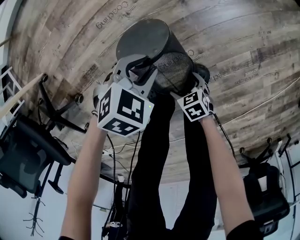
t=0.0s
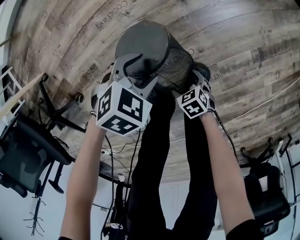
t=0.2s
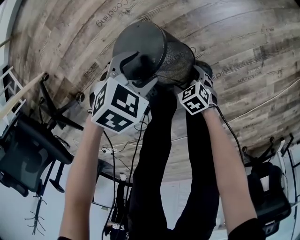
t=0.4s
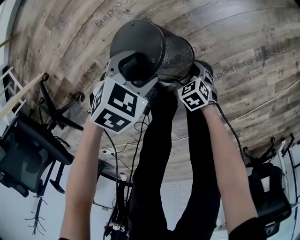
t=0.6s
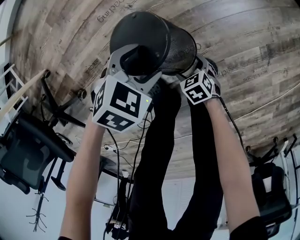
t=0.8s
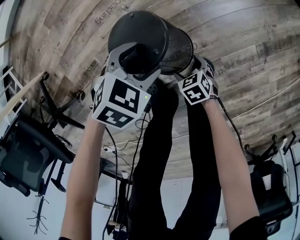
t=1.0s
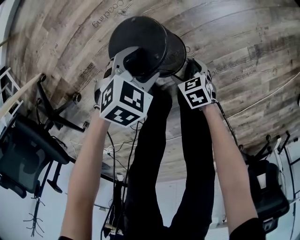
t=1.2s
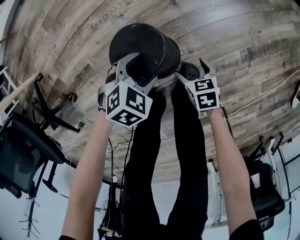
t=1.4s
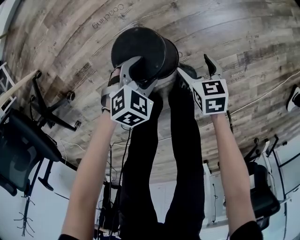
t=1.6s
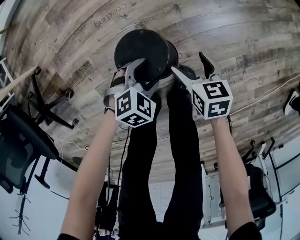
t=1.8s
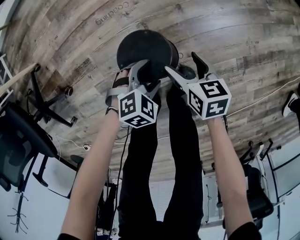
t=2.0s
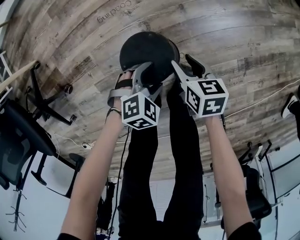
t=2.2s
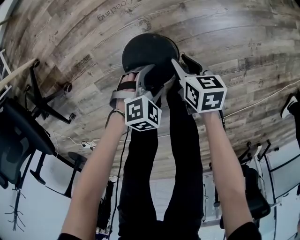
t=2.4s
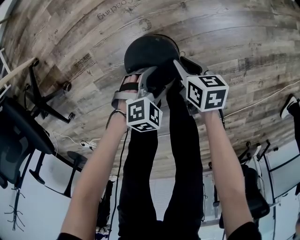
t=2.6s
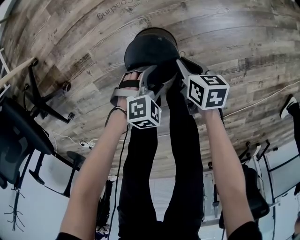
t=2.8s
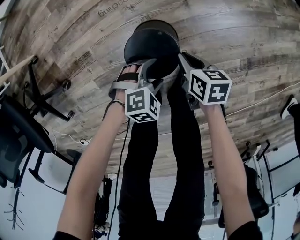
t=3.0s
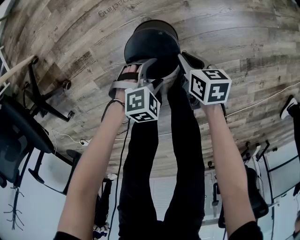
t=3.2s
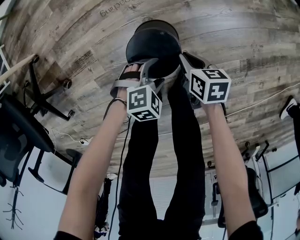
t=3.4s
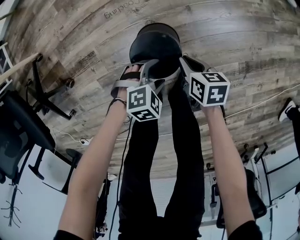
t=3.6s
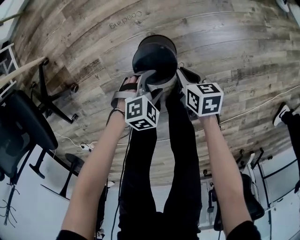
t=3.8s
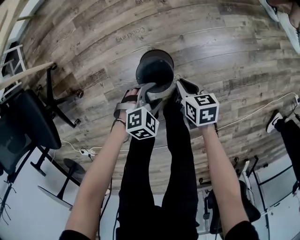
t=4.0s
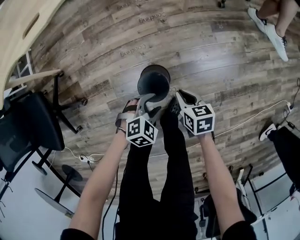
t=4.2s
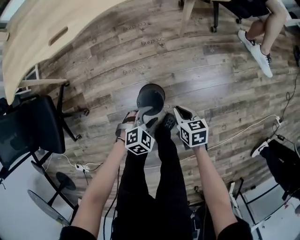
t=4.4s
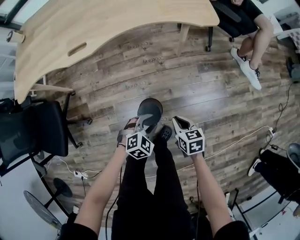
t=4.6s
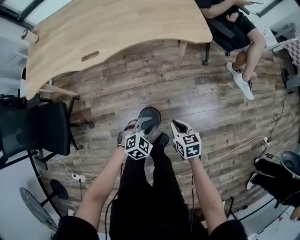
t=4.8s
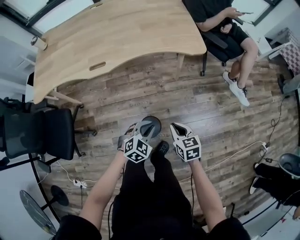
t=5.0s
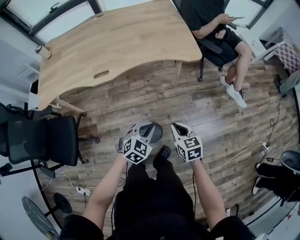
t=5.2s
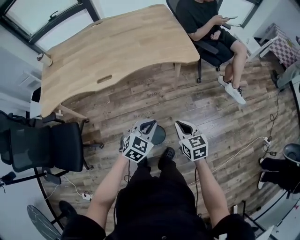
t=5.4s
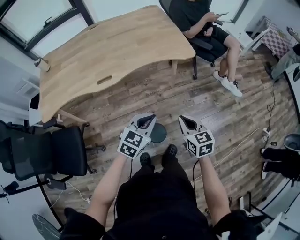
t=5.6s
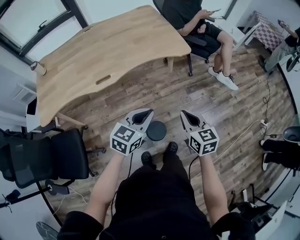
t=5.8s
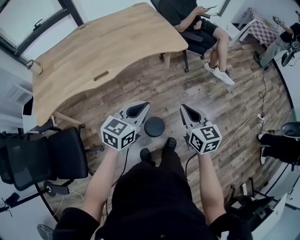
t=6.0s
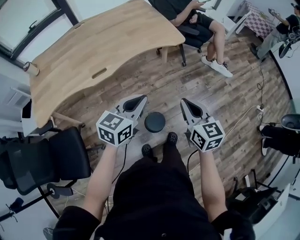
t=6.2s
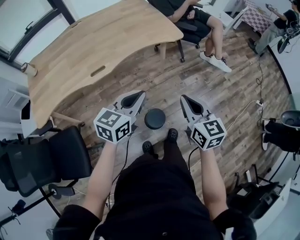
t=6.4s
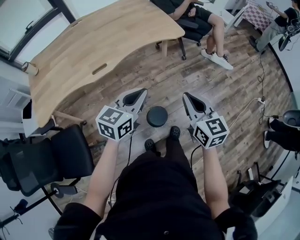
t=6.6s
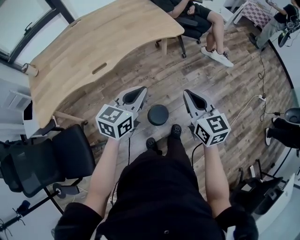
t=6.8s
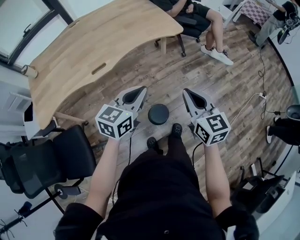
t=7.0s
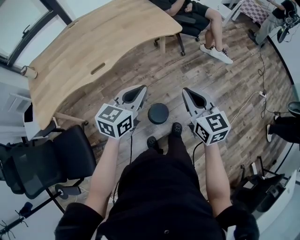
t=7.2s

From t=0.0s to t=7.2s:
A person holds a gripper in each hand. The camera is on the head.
From t=0.0s to t=1.4s: The right gripper ends up approximately 15 cm from where it was. The left gripper opens.
From t=1.4s to t=2.8s: The right gripper shifts by some 10 cm, and closes up. Meanwhile the left gripper ends up some 5 cm from where it was.
From t=2.8s to t=4.4s: Both grippers move upward, roughly 30 cm. The right gripper changes its angle by roughly 20 degrees.
From t=4.4s to t=5.8s: The grippers both shift upward by roughly 40 cm. The left gripper tilts its fingers approximately 40 degrees upward, and closes. The right gripper swivels about 30 degrees.
From t=5.8s to t=7.2s: The right gripper is displaced upward by roughly 10 cm. Meanwhile the left gripper changes place by roughly 5 cm.

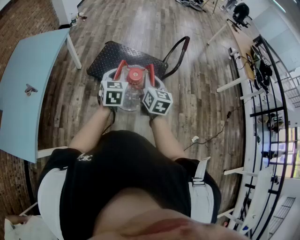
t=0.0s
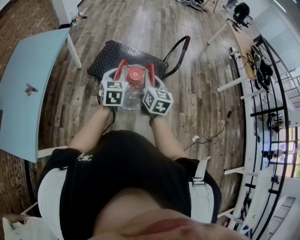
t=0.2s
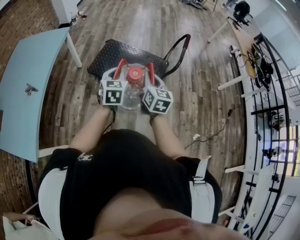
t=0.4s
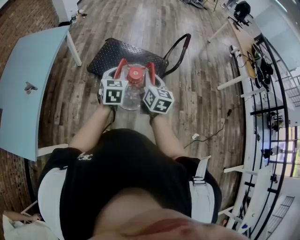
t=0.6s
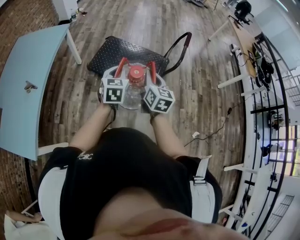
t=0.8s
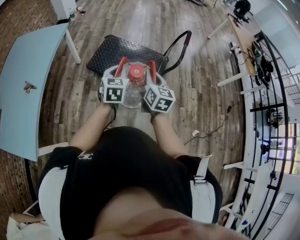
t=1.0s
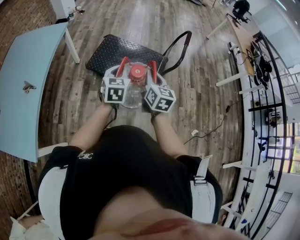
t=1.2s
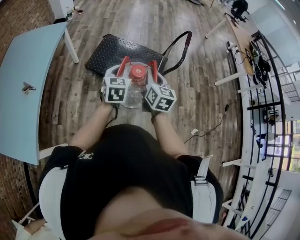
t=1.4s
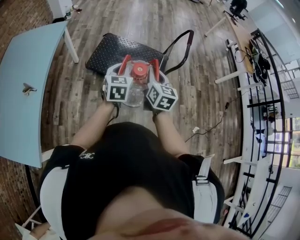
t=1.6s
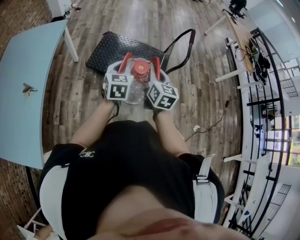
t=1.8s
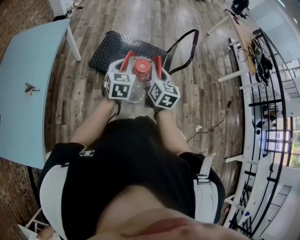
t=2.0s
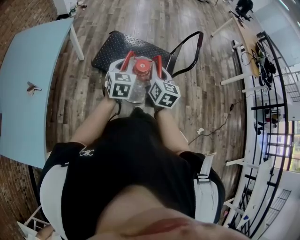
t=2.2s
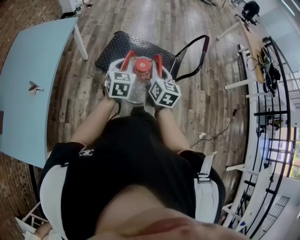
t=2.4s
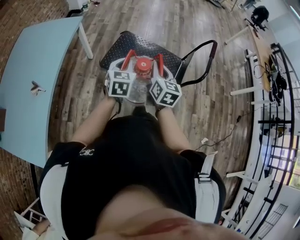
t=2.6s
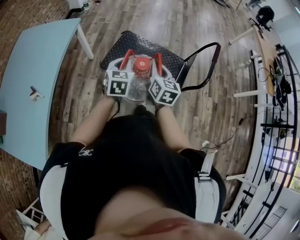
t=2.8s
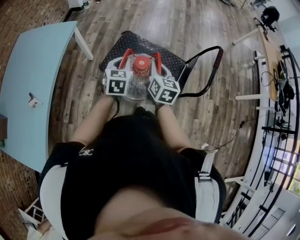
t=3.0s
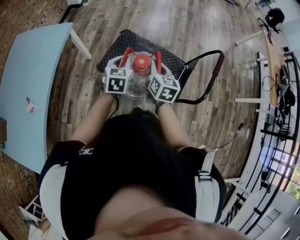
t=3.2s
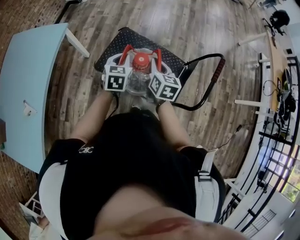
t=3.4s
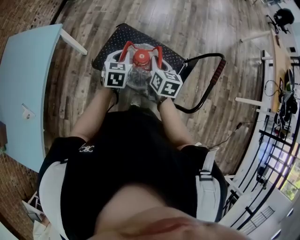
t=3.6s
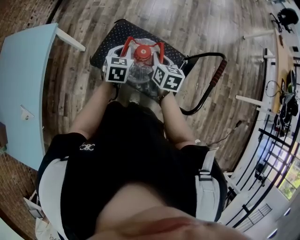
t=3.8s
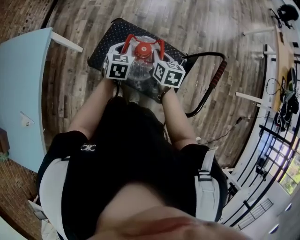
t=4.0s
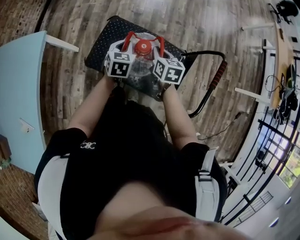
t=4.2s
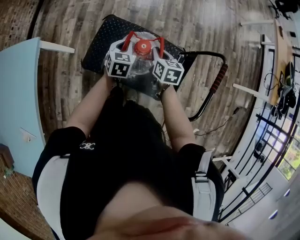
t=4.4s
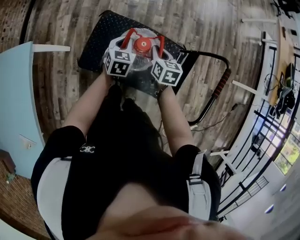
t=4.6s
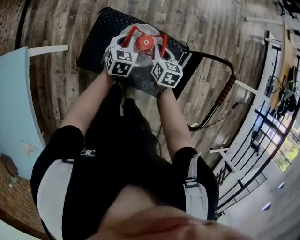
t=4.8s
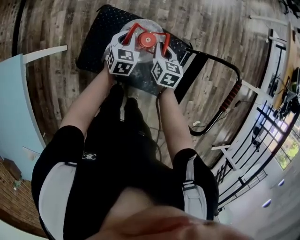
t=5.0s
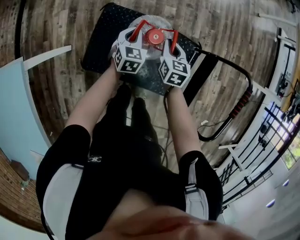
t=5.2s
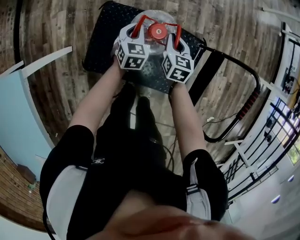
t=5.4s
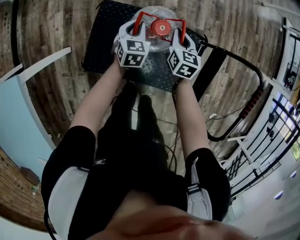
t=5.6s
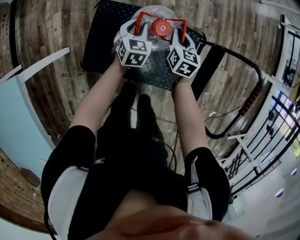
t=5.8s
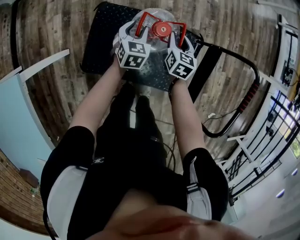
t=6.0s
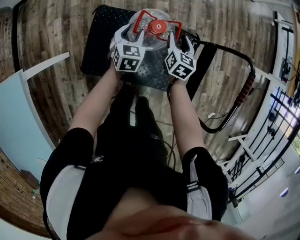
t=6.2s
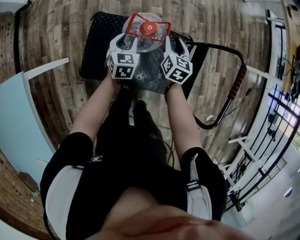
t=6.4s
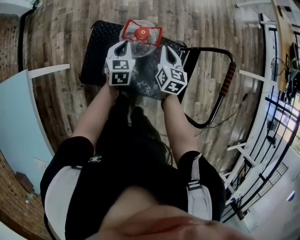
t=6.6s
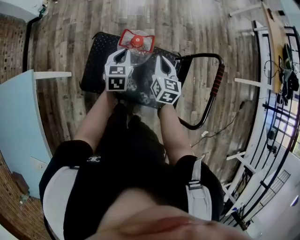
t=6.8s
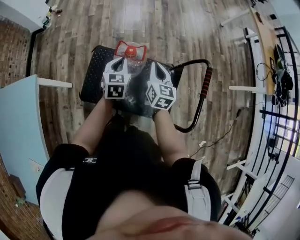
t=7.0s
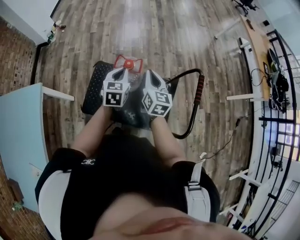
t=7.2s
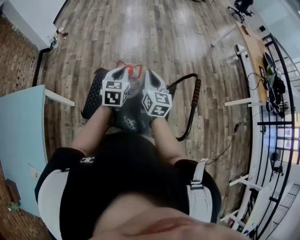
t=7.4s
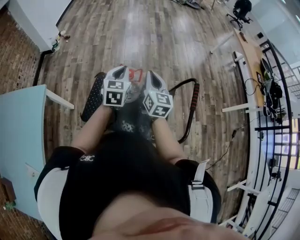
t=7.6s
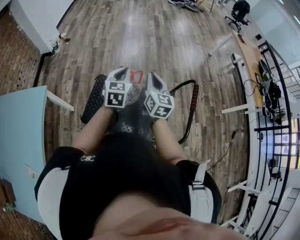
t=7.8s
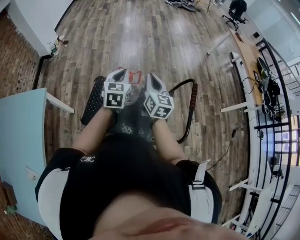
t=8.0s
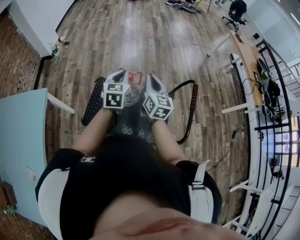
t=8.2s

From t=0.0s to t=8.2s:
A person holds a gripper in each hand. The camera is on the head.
From t=0.0s to t=1.6s: The grippers stay close to where they were, moving slightly.
From t=1.6s to t=3.2s: The grippers both shift forward by about 25 cm.
From t=3.2s to t=5.0s: The grippers both shift forward and downward by about 40 cm. The right gripper swivels approximately 20 degrees.
From t=5.0s to t=6.6s: The right gripper shifts some 10 cm upward and to the right, and opens, then closes again; the left gripper moves upward, about 5 cm, and opens, then closes again.
From t=6.6s to t=8.2s: The two grippers go some 25 cm upward. The right gripper swivels approximately 20 degrees.

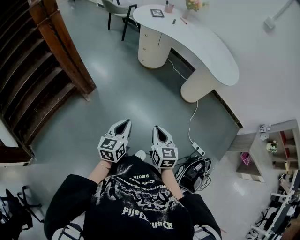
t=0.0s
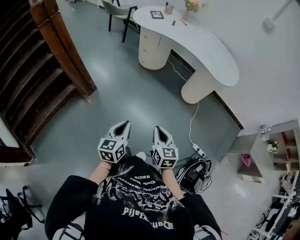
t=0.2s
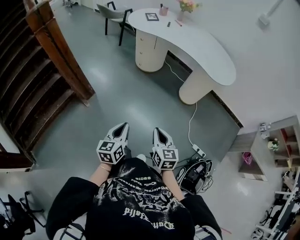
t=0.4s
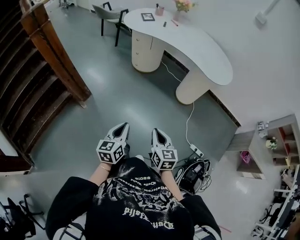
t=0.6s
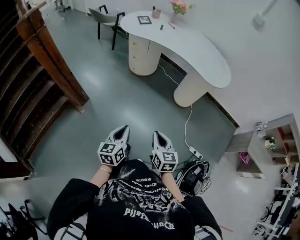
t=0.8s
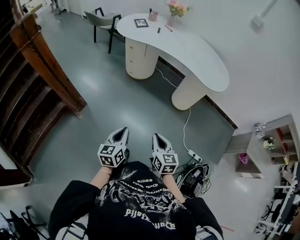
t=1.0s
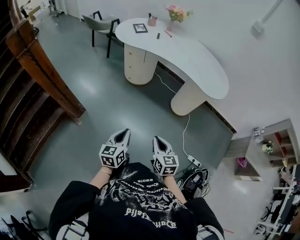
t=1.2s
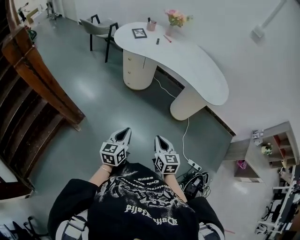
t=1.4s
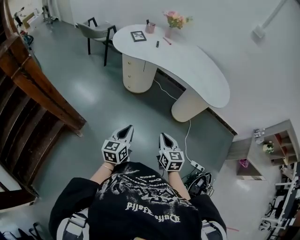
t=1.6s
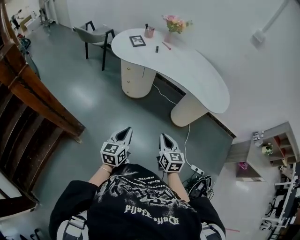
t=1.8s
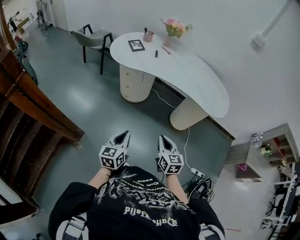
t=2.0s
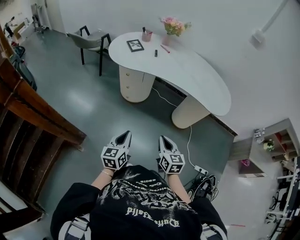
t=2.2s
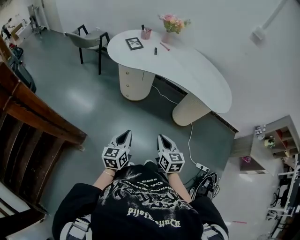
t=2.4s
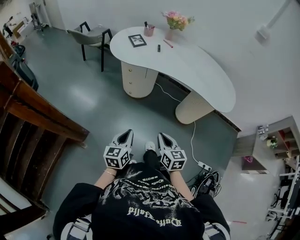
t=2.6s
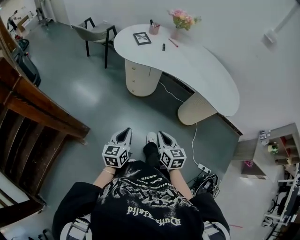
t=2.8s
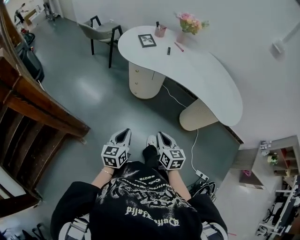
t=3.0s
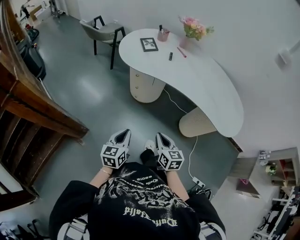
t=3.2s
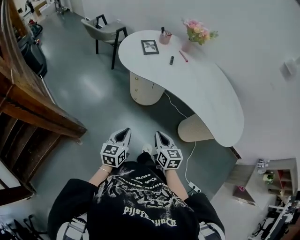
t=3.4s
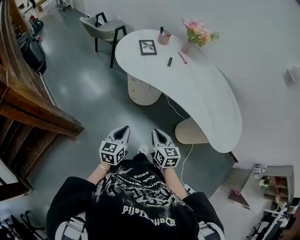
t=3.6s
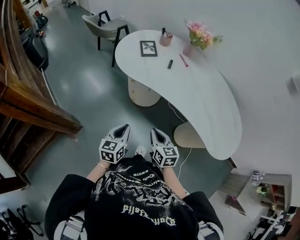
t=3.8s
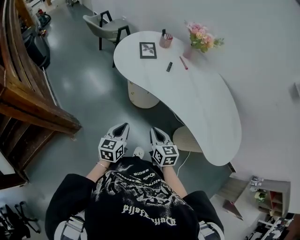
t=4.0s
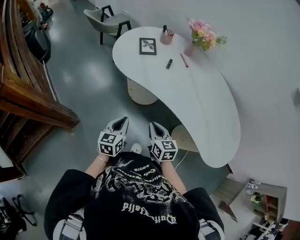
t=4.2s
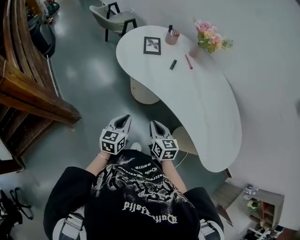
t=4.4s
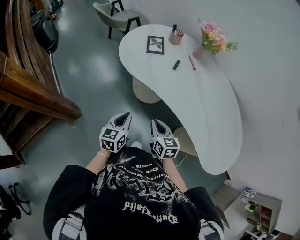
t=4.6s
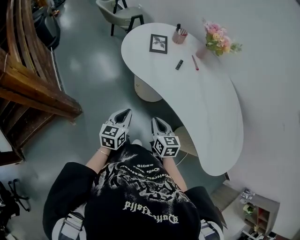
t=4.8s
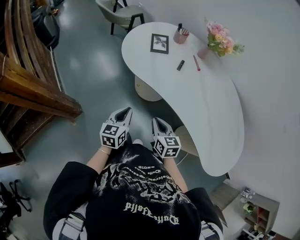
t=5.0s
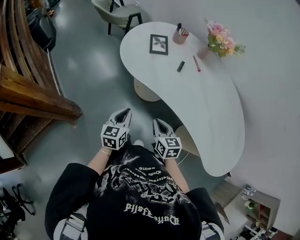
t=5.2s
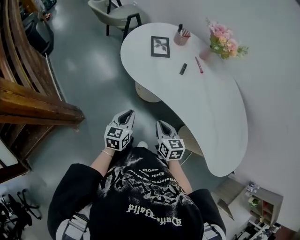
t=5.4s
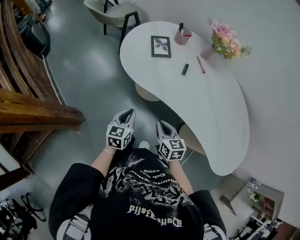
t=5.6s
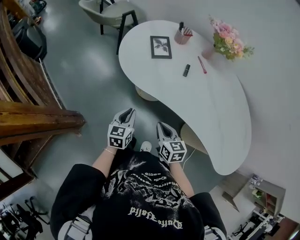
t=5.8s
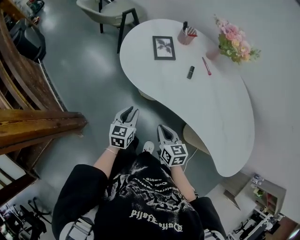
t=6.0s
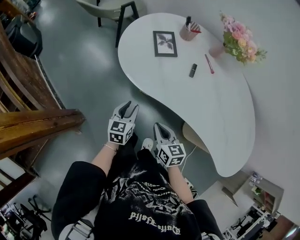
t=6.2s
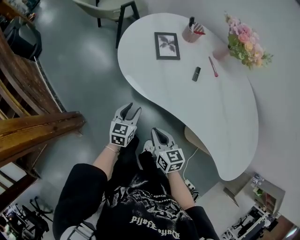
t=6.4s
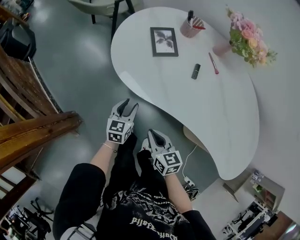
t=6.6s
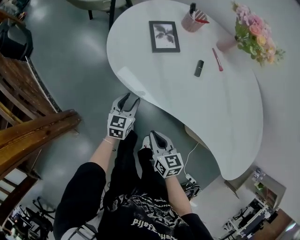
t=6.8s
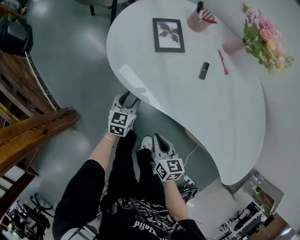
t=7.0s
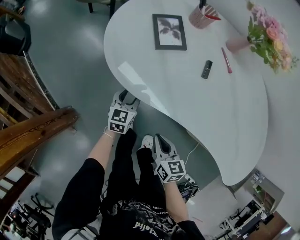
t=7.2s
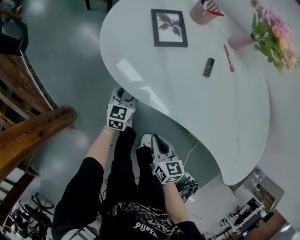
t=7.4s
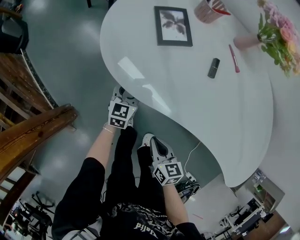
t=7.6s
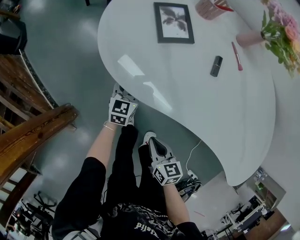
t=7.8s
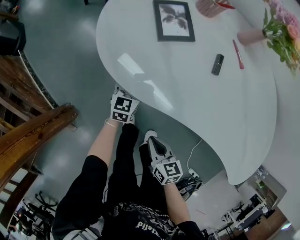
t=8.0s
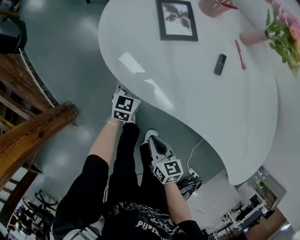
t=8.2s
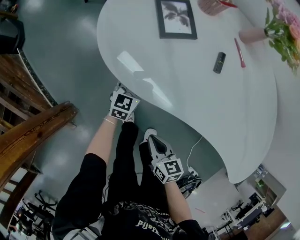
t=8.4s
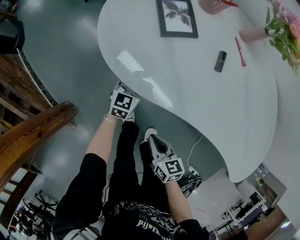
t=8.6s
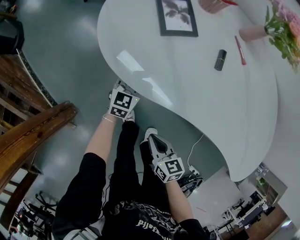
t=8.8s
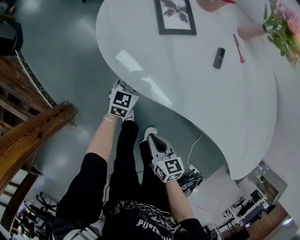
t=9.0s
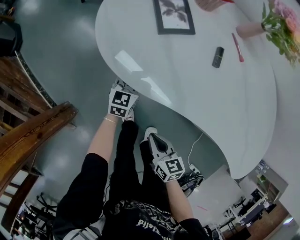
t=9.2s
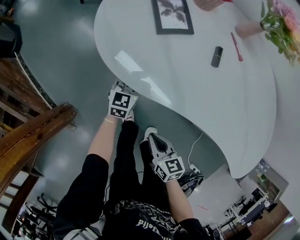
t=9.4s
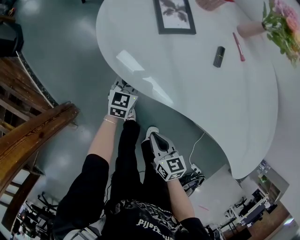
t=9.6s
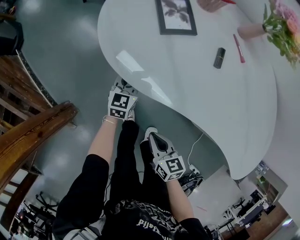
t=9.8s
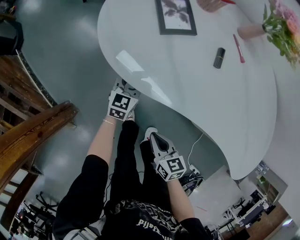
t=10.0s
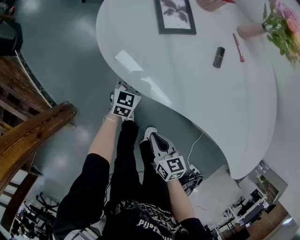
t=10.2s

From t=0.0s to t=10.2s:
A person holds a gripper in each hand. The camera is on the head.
From t=0.0s to t=1.4s: Both grippers move forward, some 20 cm.
From t=1.4s to t=3.0s: The grippers both shift forward and to the left by roughly 20 cm.
From t=3.0s to t=4.4s: Both grippers move forward and to the right, some 30 cm.
From t=4.4s to t=5.8s: Both grippers travel together forward and to the left, about 15 cm.
From t=5.8s to t=7.2s: The right gripper moves downward, some 10 cm. The left gripper heads forward and downward, covering approximately 25 cm, and opens.
From t=7.2s to t=8.8s: The left gripper moves roughly 5 cm, and closes its fingers. The right gripper travels downward by approximately 5 cm.
From t=8.8s to t=10.2s: The left gripper opens.
